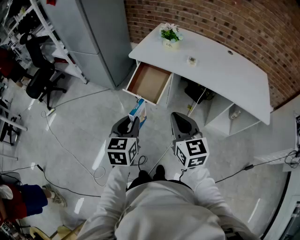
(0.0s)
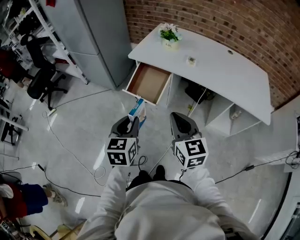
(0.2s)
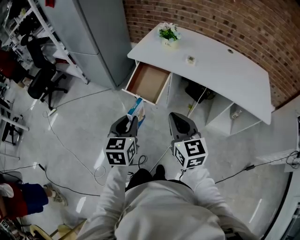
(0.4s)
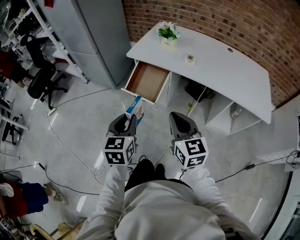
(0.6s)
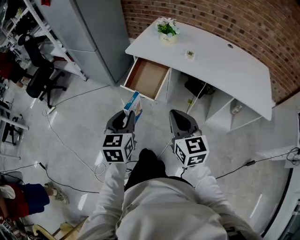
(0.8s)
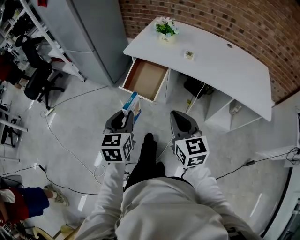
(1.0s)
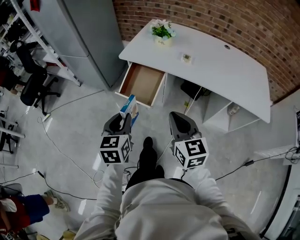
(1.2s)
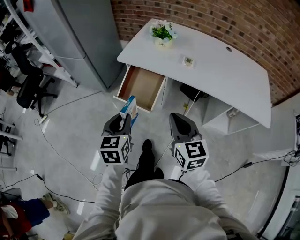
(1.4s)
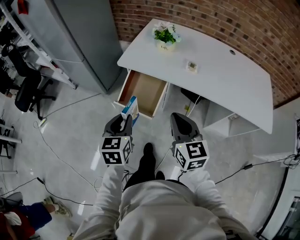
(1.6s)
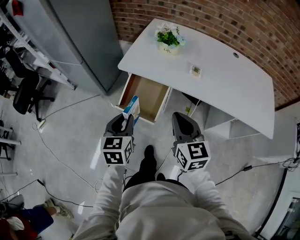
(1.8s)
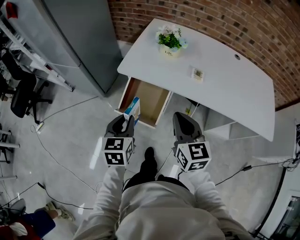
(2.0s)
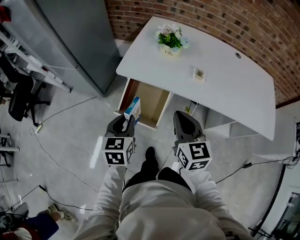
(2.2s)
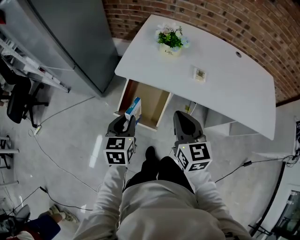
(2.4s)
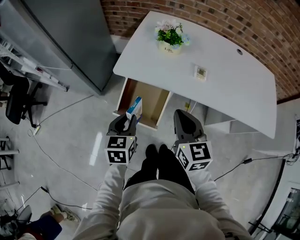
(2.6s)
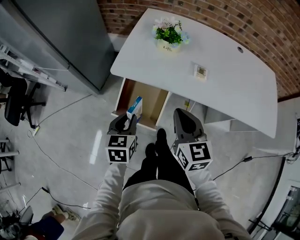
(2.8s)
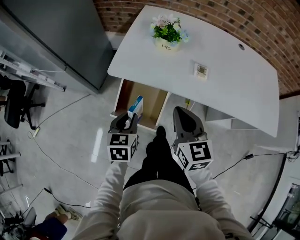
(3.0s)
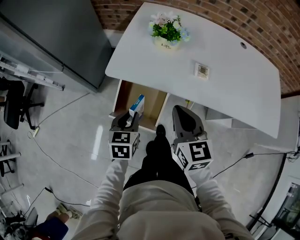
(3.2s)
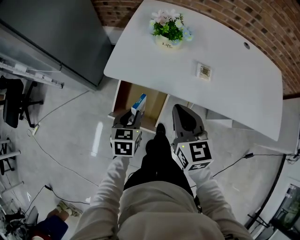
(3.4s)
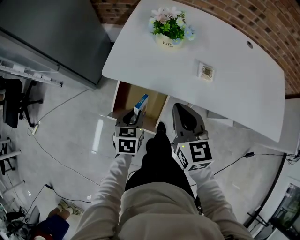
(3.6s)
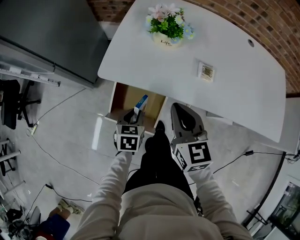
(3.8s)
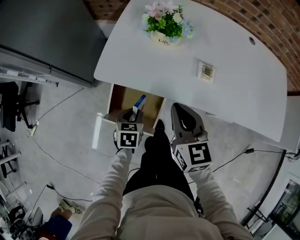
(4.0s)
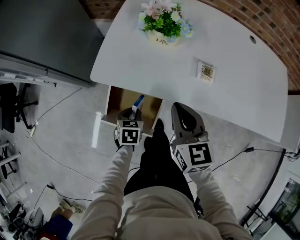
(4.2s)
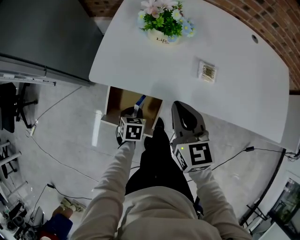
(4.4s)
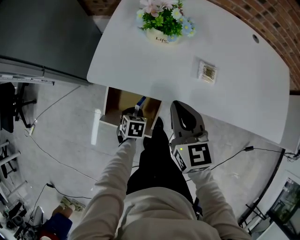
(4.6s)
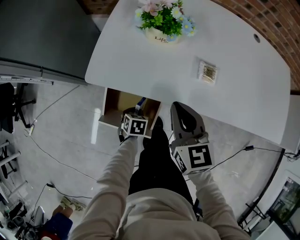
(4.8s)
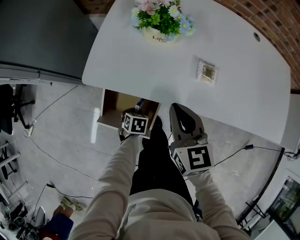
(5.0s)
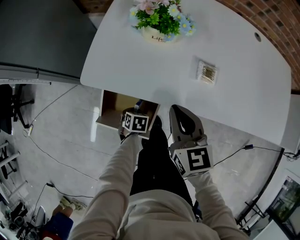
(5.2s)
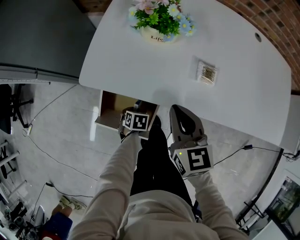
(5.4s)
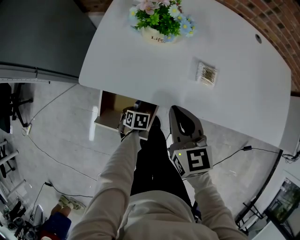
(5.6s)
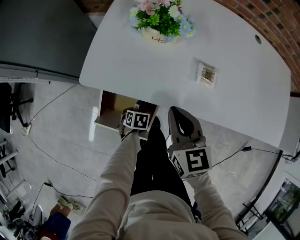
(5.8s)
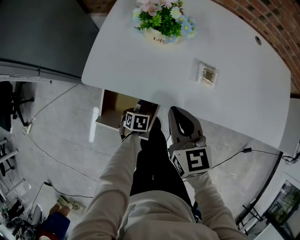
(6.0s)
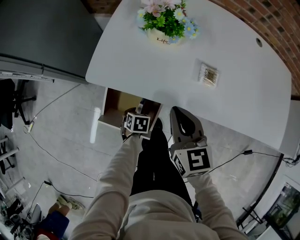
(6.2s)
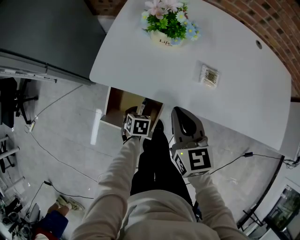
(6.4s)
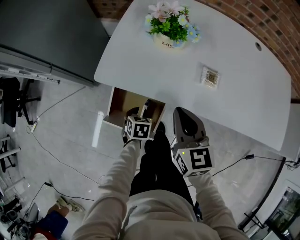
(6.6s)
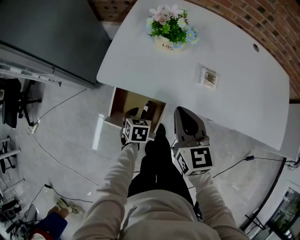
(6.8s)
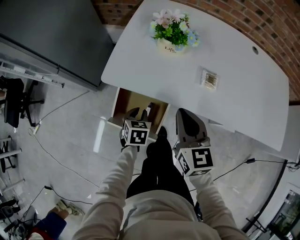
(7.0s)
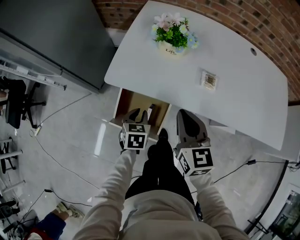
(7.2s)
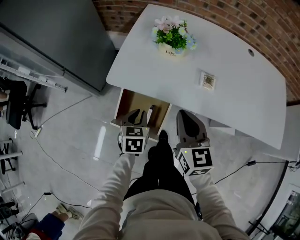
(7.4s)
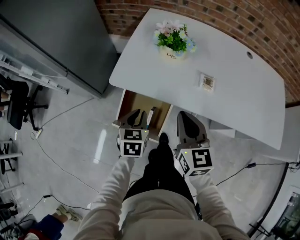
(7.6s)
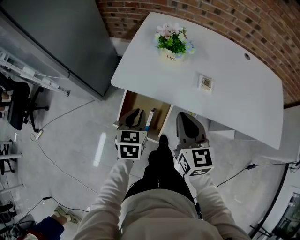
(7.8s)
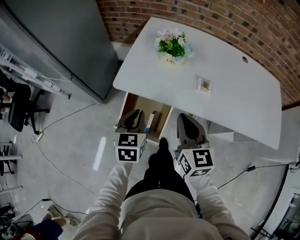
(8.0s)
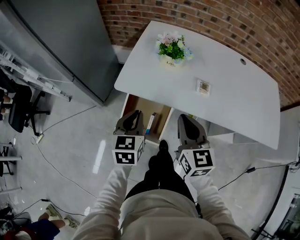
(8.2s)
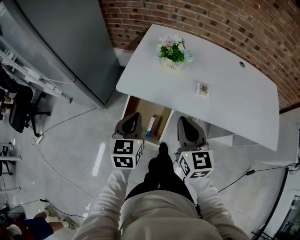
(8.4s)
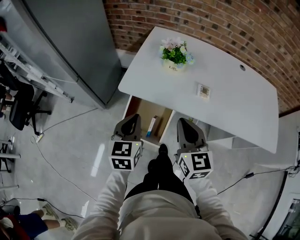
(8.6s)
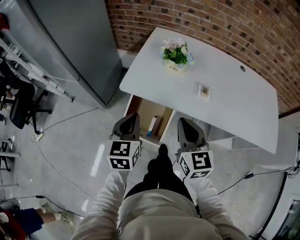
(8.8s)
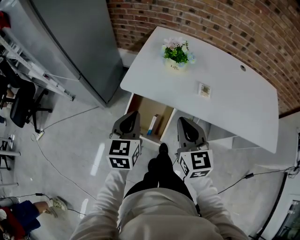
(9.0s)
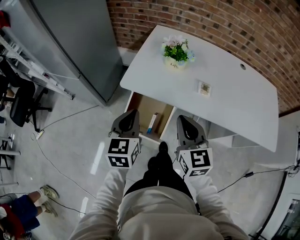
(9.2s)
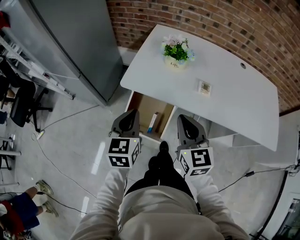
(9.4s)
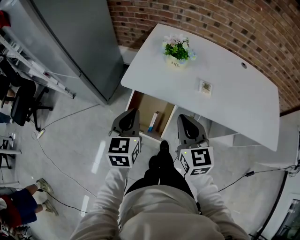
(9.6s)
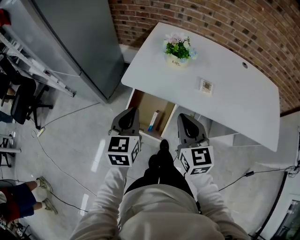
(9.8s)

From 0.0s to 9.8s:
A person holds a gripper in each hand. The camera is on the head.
From 0.0s to 1.4s: The grippers both shift forward by roughly 10 cm.
From 1.4s to 2.8s: The right gripper shifts approximately 20 cm forward. The left gripper goes roughly 20 cm forward and downward.
From 2.8s to 4.2s: The right gripper is displaced forward and downward by approximately 10 cm; the left gripper goes some 20 cm downward and forward, and rotates about 20 degrees.
From 4.2s to 5.6s: The left gripper shifts roughly 15 cm downward, and rotates roughly 20 degrees.
From 5.6s to 7.0s: The right gripper moves roughly 5 cm; the left gripper shifts about 15 cm upward, and turns by about 20 degrees.
From 7.0s to 8.4s: The left gripper is displaced upward by about 25 cm, and rotates approximately 30 degrees; the right gripper is displaced upward and backward by approximately 10 cm.
From 8.4s to 9.8s: The grippers stay close to where they were, moving slightly.

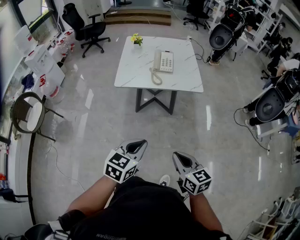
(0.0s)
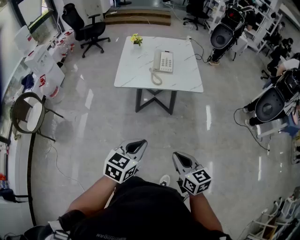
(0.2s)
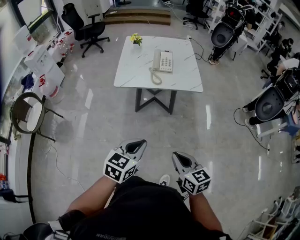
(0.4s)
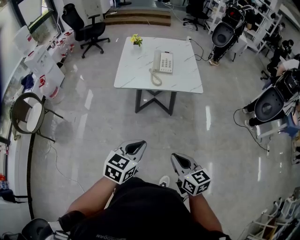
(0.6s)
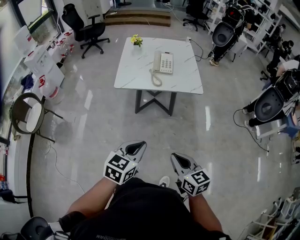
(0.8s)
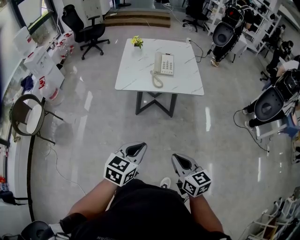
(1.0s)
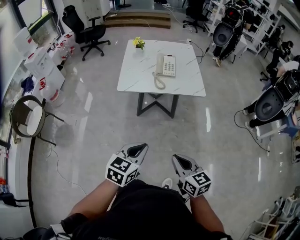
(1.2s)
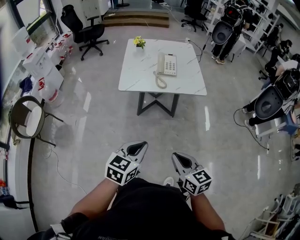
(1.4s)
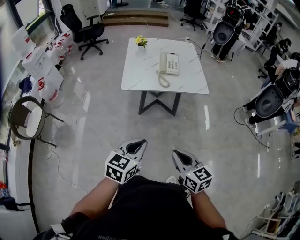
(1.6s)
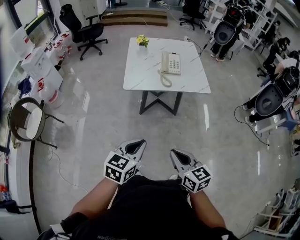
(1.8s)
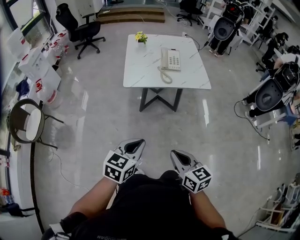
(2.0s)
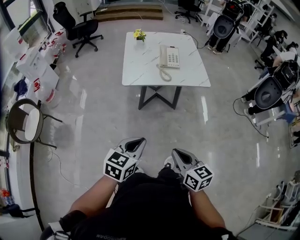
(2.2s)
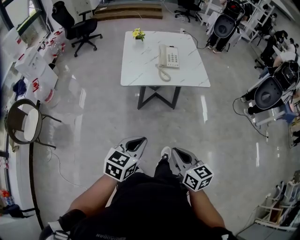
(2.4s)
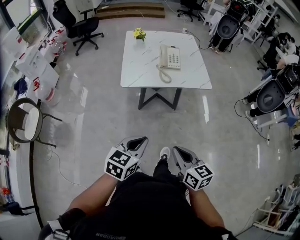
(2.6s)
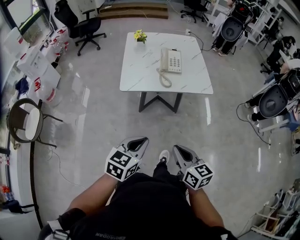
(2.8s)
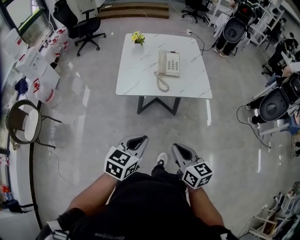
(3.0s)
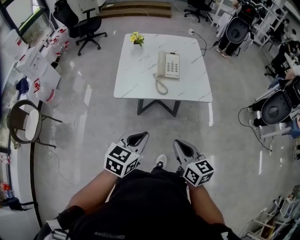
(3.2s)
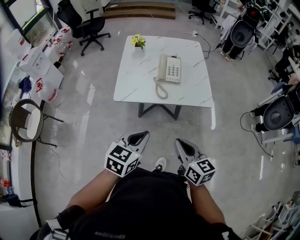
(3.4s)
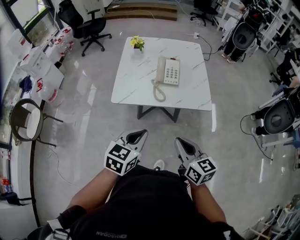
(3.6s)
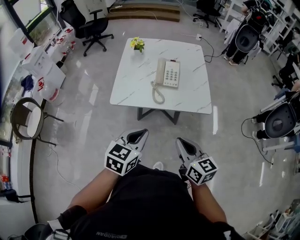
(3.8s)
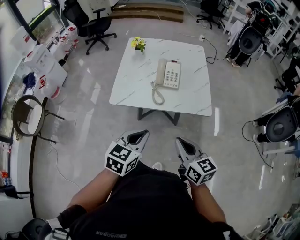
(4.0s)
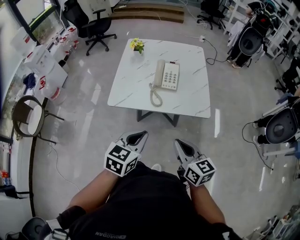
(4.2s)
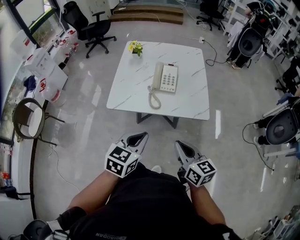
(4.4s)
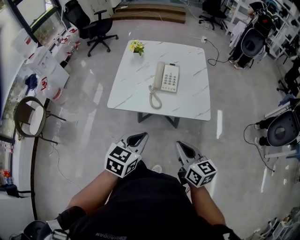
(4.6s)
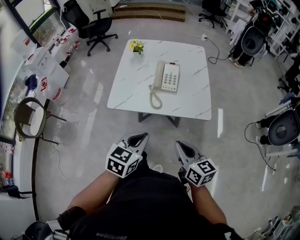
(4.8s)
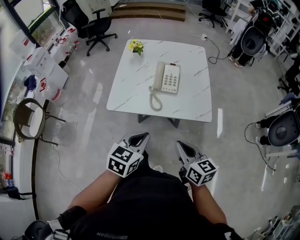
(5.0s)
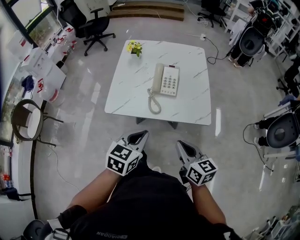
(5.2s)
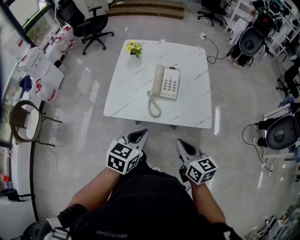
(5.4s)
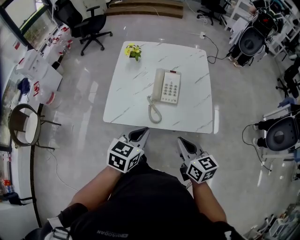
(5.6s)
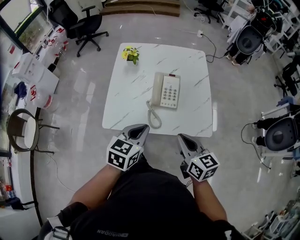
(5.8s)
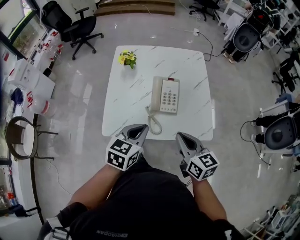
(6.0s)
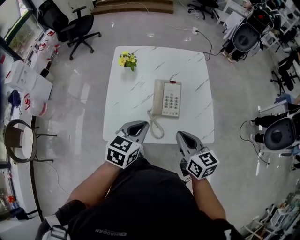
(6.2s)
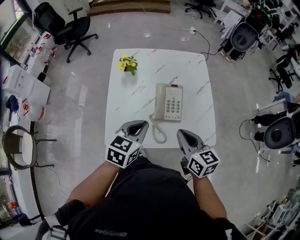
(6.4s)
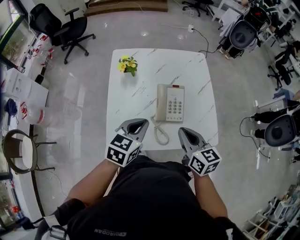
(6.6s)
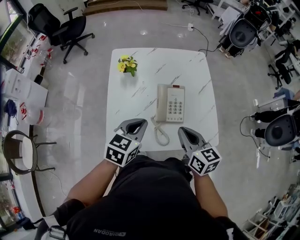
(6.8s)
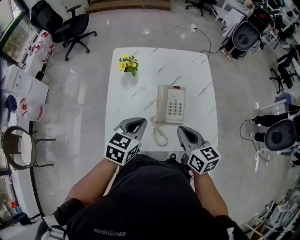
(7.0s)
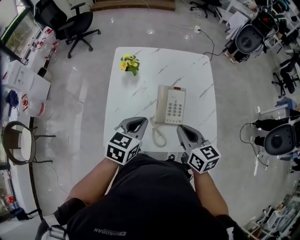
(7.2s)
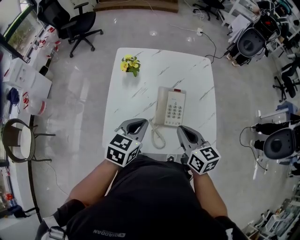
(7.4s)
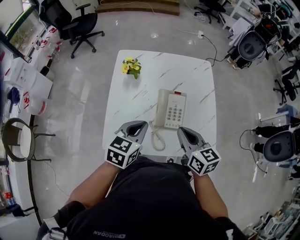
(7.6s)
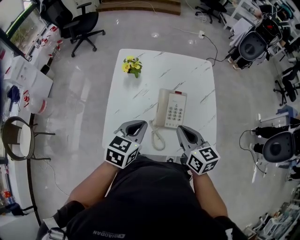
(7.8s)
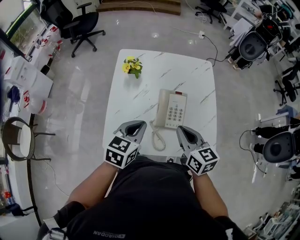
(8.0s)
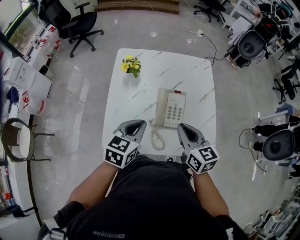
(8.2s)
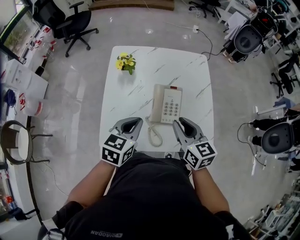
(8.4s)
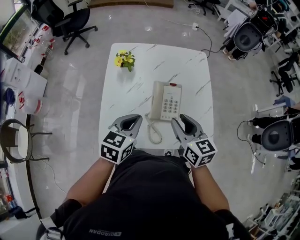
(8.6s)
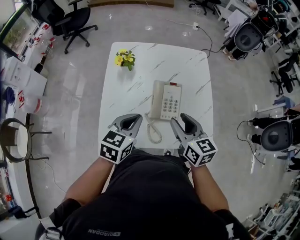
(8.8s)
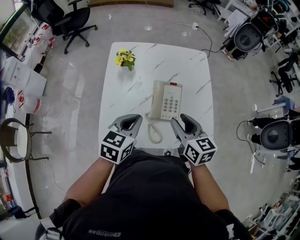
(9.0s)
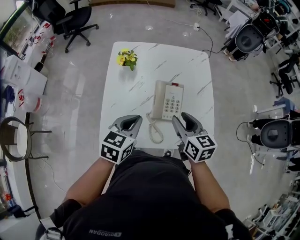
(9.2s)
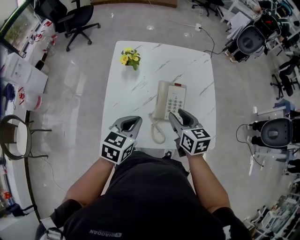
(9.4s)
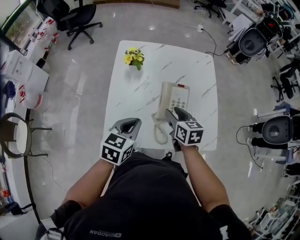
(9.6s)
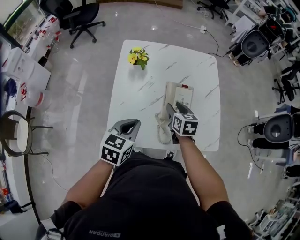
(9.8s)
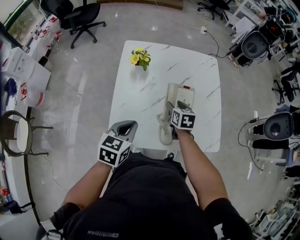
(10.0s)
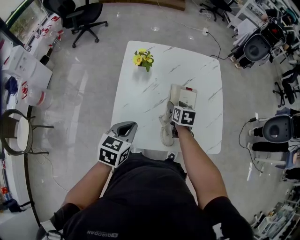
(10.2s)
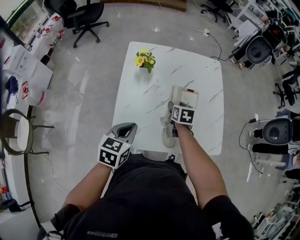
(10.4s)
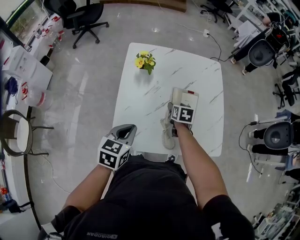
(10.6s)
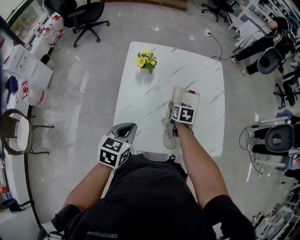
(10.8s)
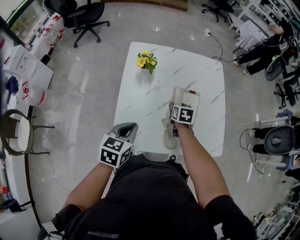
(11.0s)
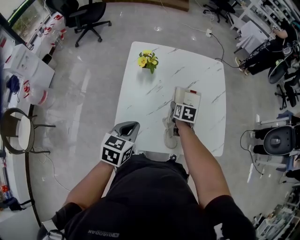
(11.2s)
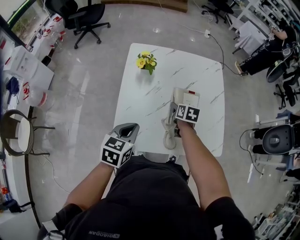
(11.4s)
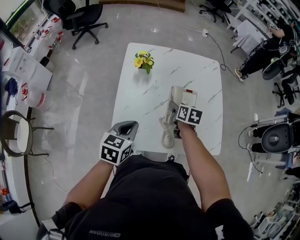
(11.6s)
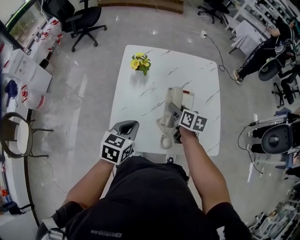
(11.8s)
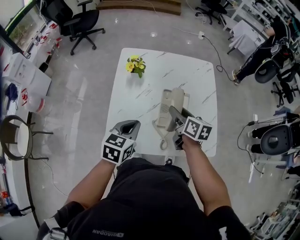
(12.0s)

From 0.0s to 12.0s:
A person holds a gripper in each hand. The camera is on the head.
From 0.0s to 1.6s: The two grippers go roughly 10 cm to the left.
From 1.6s to 3.0s: Both grippers travel together forward, roughly 10 cm.
From 3.0s to 4.4s: The grippers both shift forward and to the right by some 20 cm.
From 4.4s to 6.0s: Both grippers move forward, roughly 20 cm.
From 6.0s to 7.6s: Both grippers move forward, roughly 10 cm.
From 7.6s to 9.0s: The right gripper opens.
From 9.0s to 10.4s: The right gripper shifts approximately 20 cm downward, forward and to the left, and rotates approximately 30 degrees. The left gripper shifts roughly 10 cm to the left.
From 10.4s to 12.0s: The right gripper shifts approximately 10 cm upward, and turns by approximately 30 degrees. The left gripper travels to the right by some 5 cm.

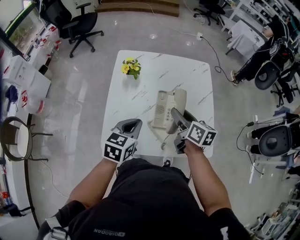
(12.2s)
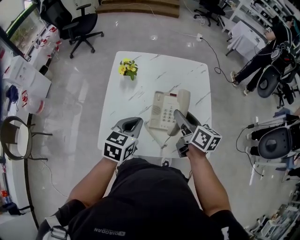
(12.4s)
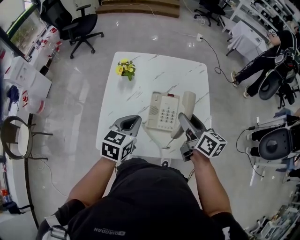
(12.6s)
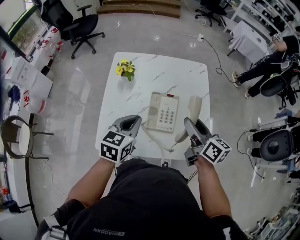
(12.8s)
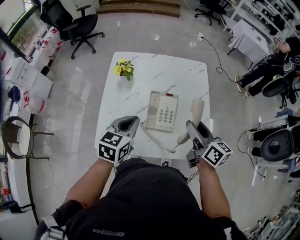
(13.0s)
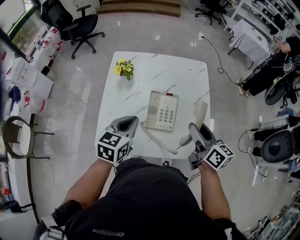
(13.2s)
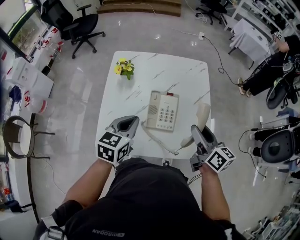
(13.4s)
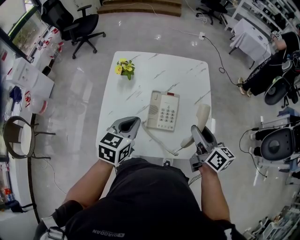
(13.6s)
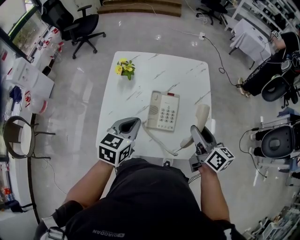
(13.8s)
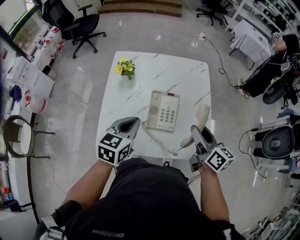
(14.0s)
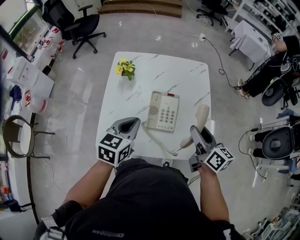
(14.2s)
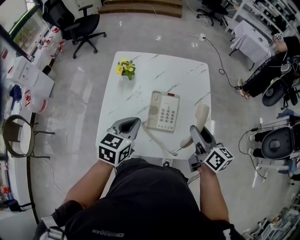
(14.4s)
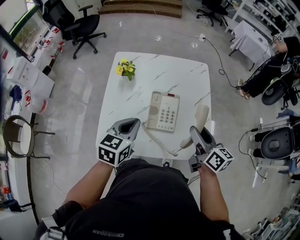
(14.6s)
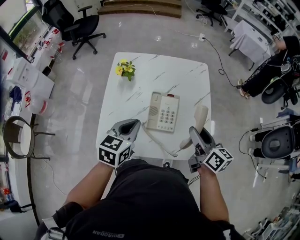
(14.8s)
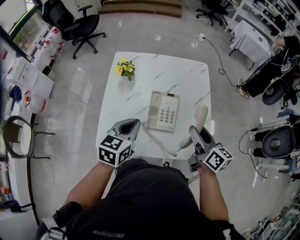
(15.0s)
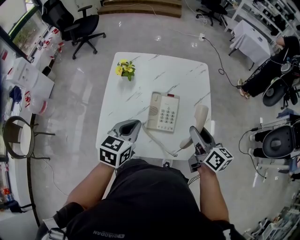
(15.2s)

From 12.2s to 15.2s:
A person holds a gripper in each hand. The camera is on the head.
From 12.2s to 13.8s: The left gripper changes place by some 5 cm. Meanwhile the right gripper goes some 15 cm to the right and backward.
From 13.8s to 15.2s: Both grippers stay put.
